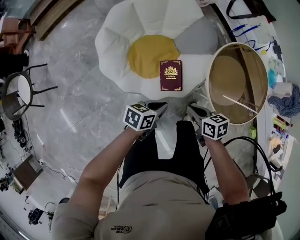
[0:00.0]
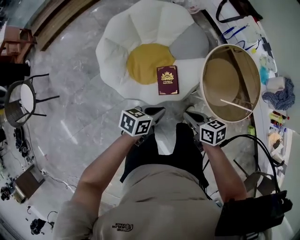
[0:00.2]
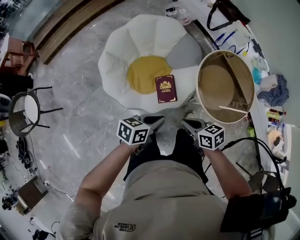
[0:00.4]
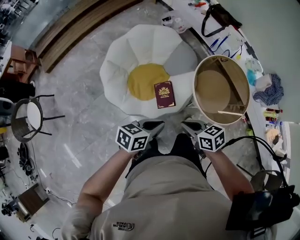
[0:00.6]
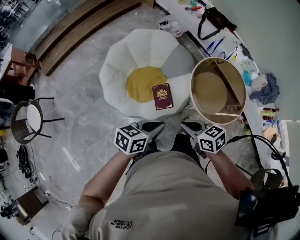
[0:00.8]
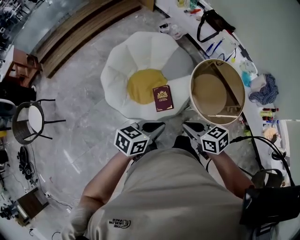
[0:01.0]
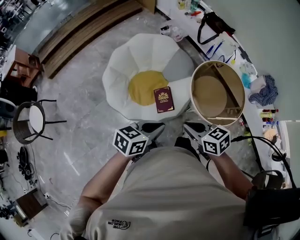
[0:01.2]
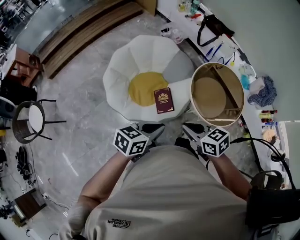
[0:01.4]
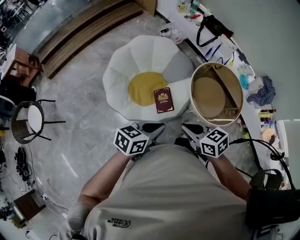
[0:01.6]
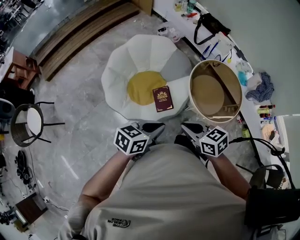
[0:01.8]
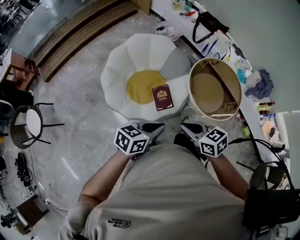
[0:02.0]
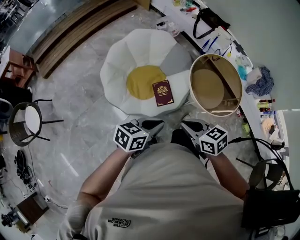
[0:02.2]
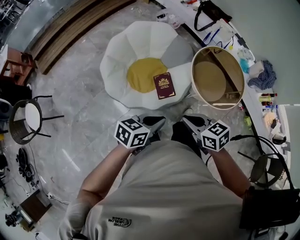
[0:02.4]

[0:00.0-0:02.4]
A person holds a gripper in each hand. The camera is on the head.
0.0 to 1.2 s: The two grippers go about 25 cm upward. The left gripper rotates about 20 degrees.
1.2 to 2.4 s: The right gripper moves roughly 5 cm, while the left gripper shifts by approximately 5 cm.

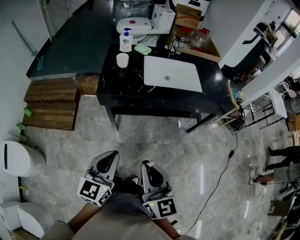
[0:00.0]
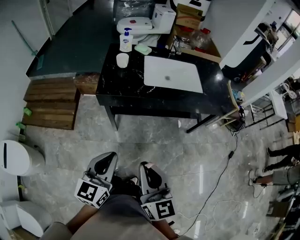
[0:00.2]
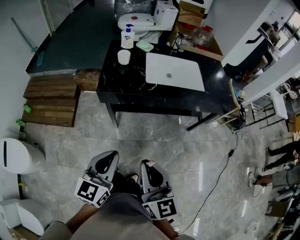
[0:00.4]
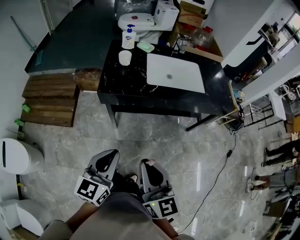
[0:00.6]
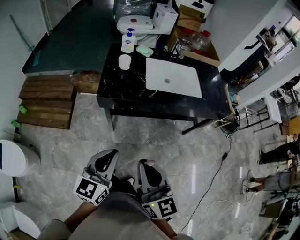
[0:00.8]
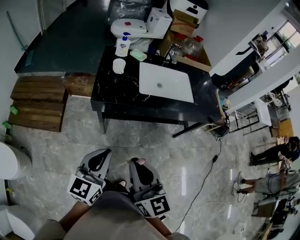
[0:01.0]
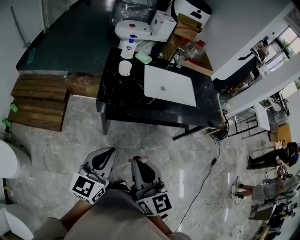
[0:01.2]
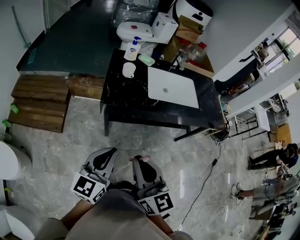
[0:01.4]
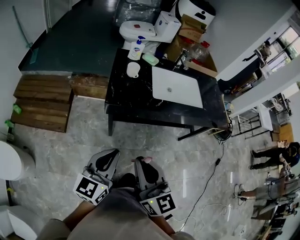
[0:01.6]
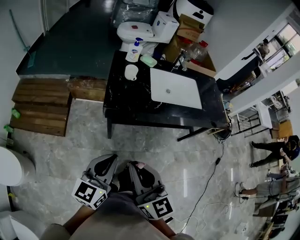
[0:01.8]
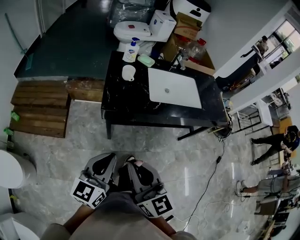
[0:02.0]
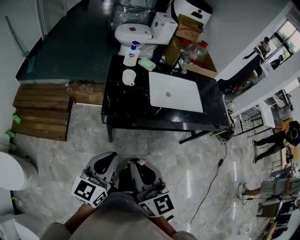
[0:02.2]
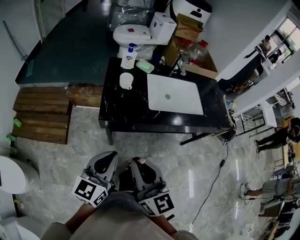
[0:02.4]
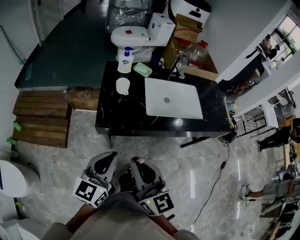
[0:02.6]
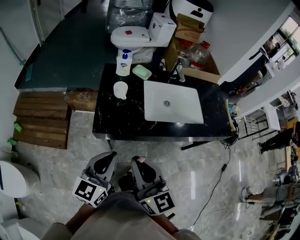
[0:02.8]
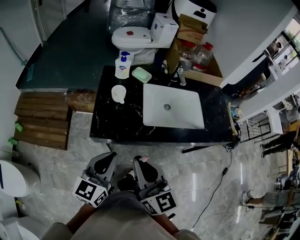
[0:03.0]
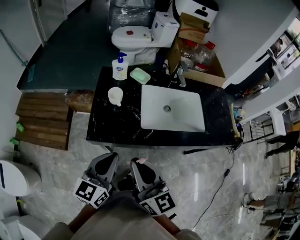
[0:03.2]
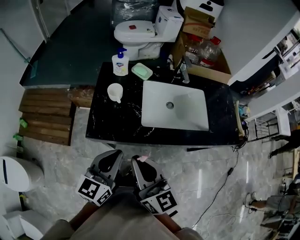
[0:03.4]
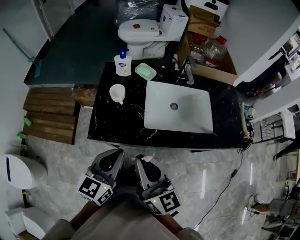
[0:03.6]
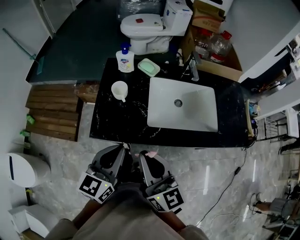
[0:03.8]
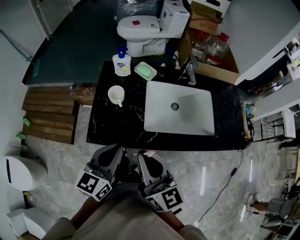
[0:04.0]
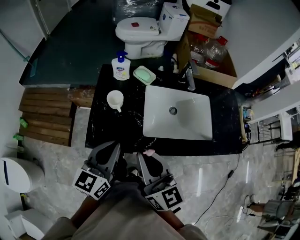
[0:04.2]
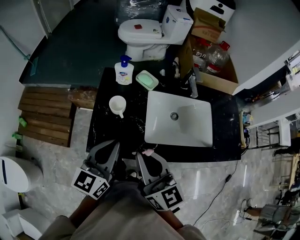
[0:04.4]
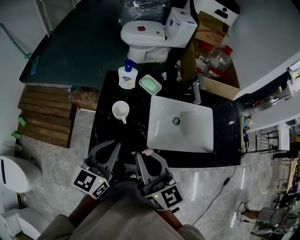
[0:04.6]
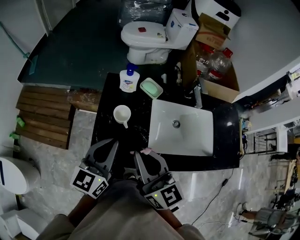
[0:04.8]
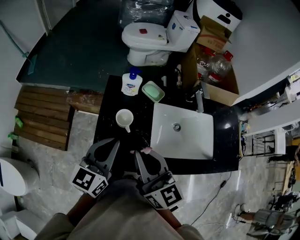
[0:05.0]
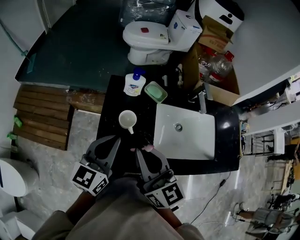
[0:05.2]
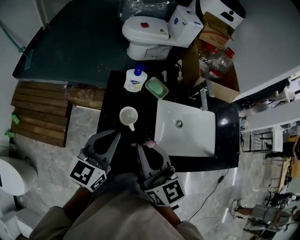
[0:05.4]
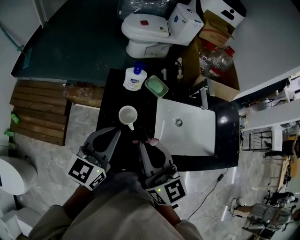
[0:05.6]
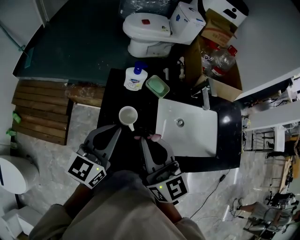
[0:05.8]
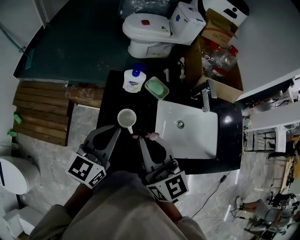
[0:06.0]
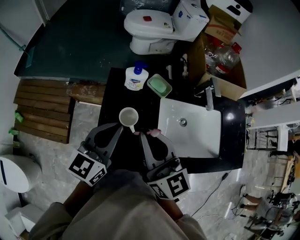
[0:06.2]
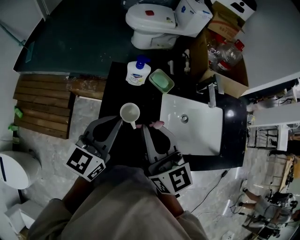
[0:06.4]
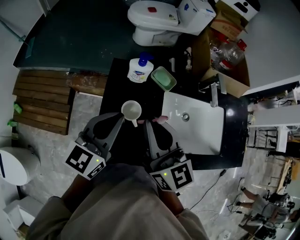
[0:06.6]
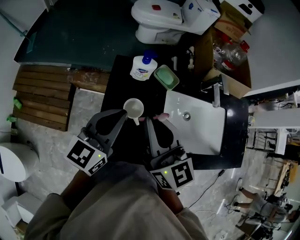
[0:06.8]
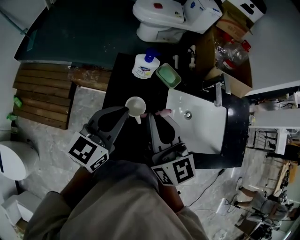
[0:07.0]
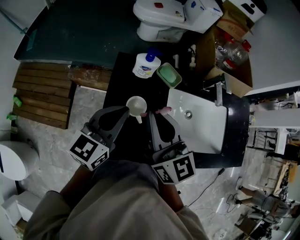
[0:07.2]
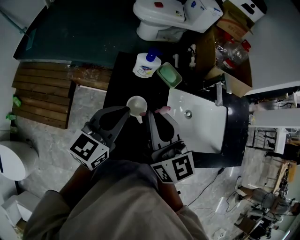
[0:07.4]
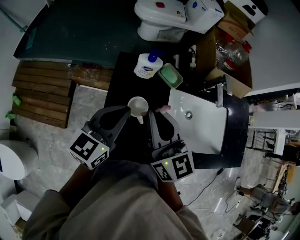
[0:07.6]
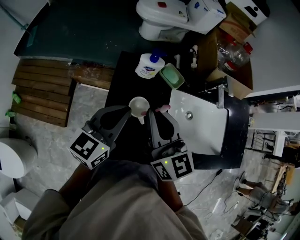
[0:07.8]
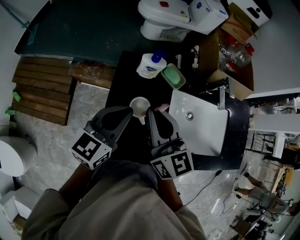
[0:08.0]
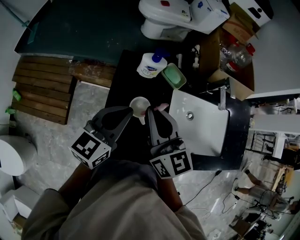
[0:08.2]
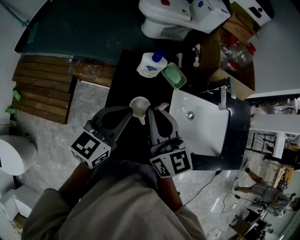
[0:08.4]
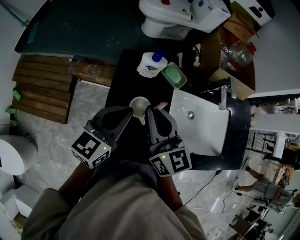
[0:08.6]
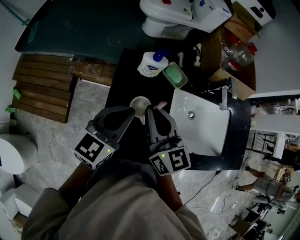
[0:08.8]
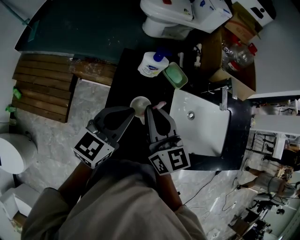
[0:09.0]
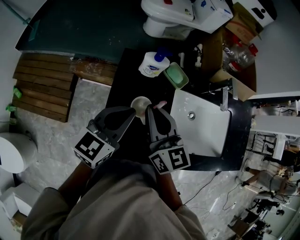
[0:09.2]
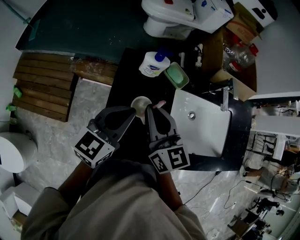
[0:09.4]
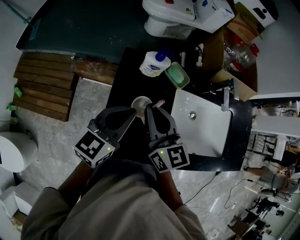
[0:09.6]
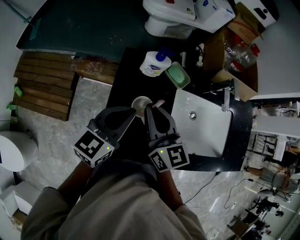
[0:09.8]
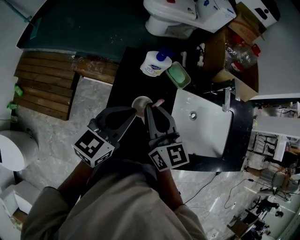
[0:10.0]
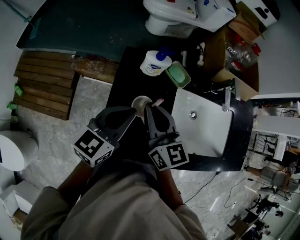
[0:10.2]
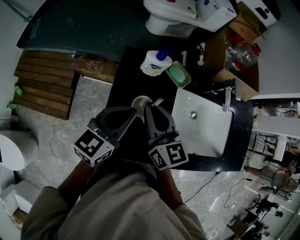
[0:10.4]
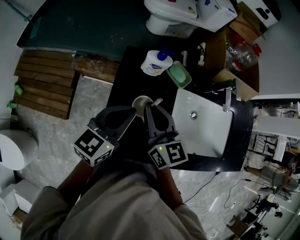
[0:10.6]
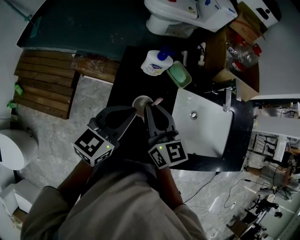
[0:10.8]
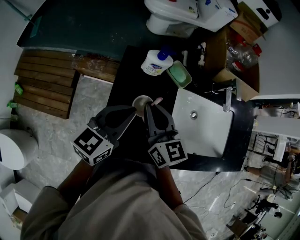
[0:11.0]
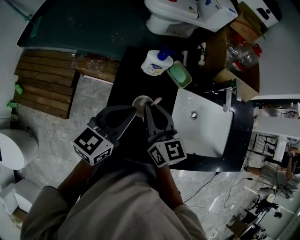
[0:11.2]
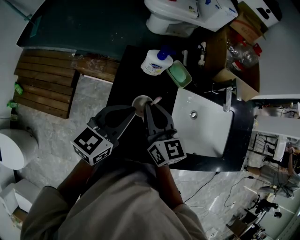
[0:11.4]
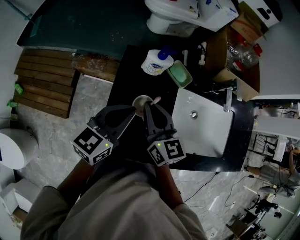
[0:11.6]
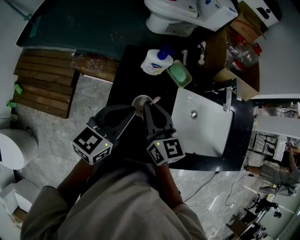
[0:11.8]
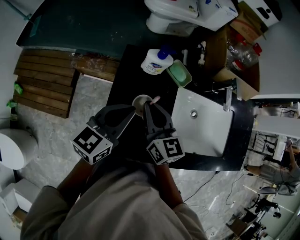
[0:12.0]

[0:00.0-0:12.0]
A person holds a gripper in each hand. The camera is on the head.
0.0 to 1.6 s: The two grippers go some 15 cm to the left and forward.
1.6 to 3.0 s: Both grippers travel together forward, approximately 20 cm.
3.0 to 4.4 s: The grippers both shift forward by some 15 cm.
4.4 to 6.0 s: Both grippers travel together forward and to the left, approximately 15 cm.
6.0 to 7.6 s: The right gripper heads forward, covering some 5 cm.
7.6 to 9.0 s: The right gripper moves roughly 5 cm.
9.0 to 10.4 s: The grippers make only small movements.
10.4 to 12.0 s: There are only small adjustments of the grippers.

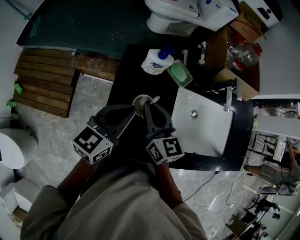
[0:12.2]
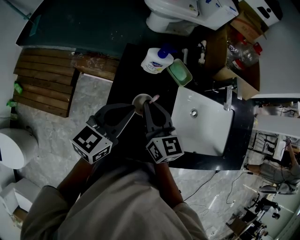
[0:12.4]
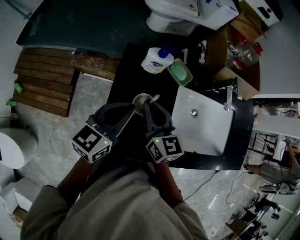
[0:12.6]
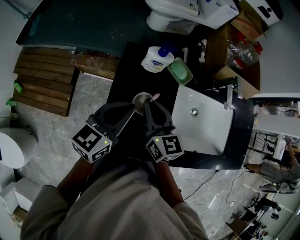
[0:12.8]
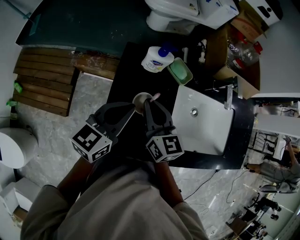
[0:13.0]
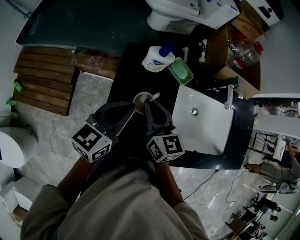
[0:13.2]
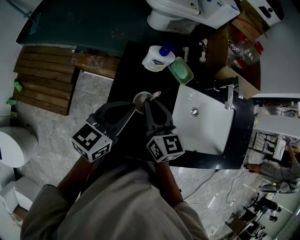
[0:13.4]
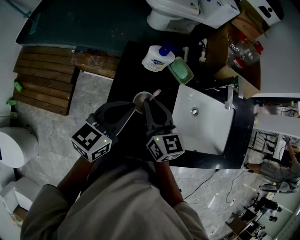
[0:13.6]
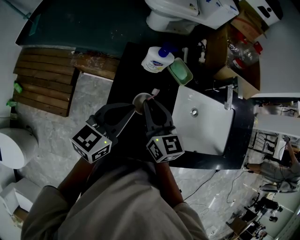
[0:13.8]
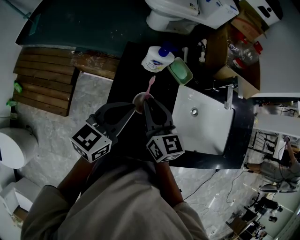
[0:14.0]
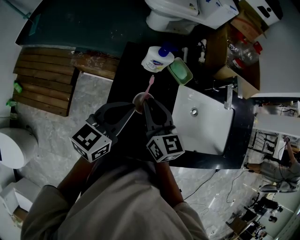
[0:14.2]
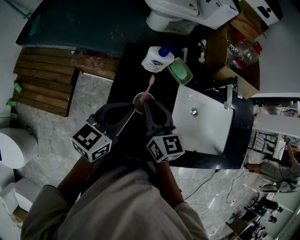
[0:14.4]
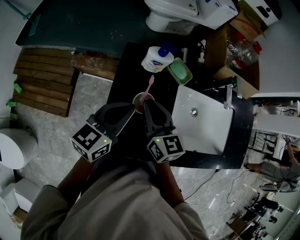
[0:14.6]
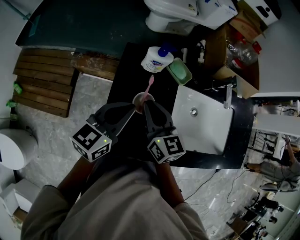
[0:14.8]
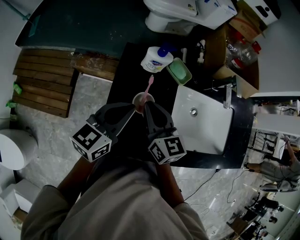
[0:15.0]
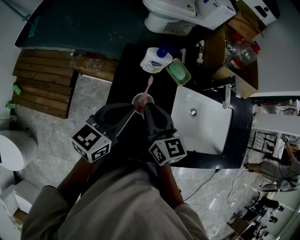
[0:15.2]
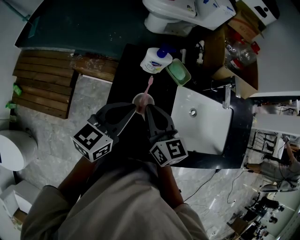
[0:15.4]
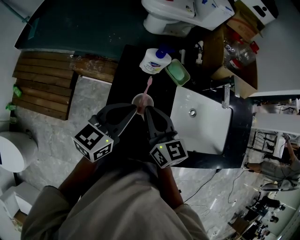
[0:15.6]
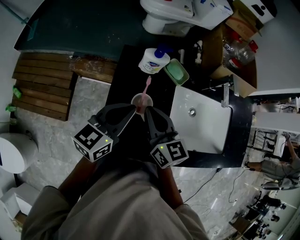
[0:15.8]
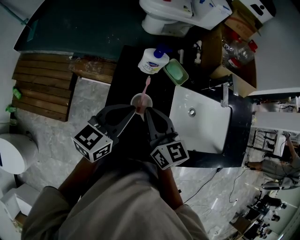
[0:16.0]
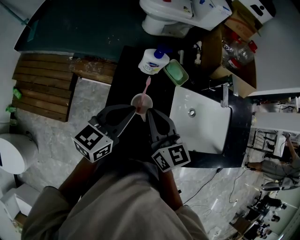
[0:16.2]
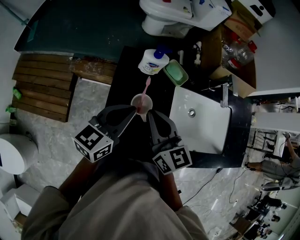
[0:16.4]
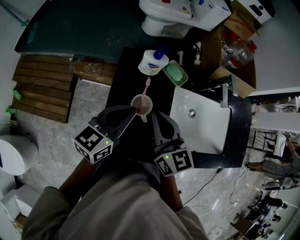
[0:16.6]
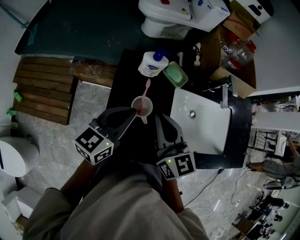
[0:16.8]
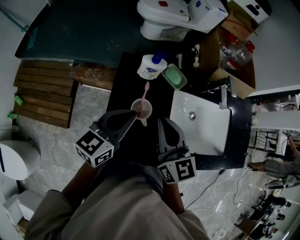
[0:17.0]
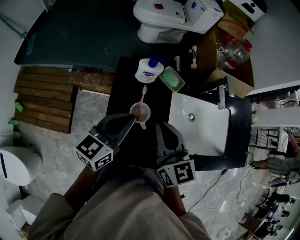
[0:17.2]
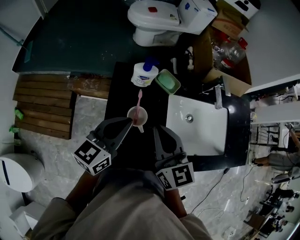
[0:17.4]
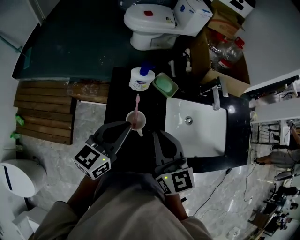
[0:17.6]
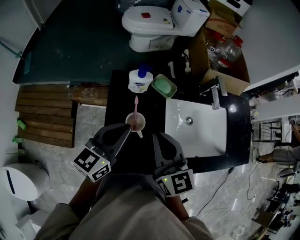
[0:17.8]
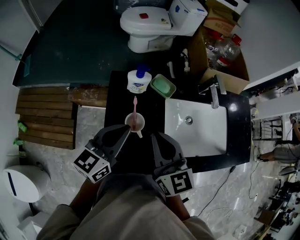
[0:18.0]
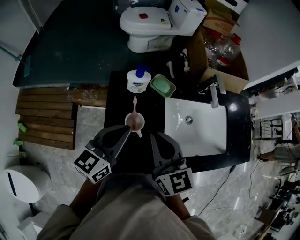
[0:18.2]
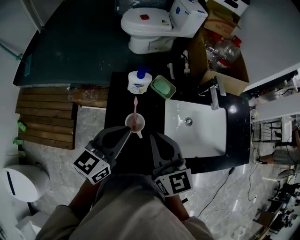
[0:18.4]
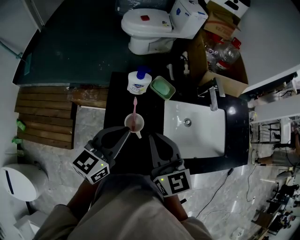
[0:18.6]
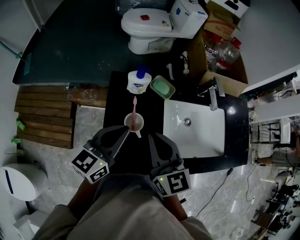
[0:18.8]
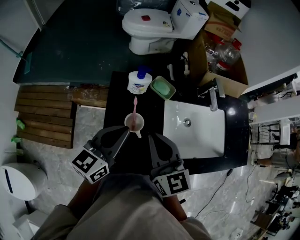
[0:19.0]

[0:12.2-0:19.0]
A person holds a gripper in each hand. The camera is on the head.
12.2 to 15.0 s: Both grippers stay about where they are.
15.0 to 16.2 s: The grippers stay close to where they were, moving slightly.
16.2 to 17.6 s: The right gripper moves upward, roughly 5 cm.
17.6 to 19.0 s: There are only small adjustments of the grippers.

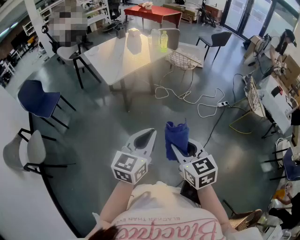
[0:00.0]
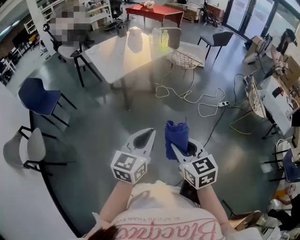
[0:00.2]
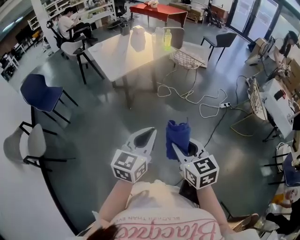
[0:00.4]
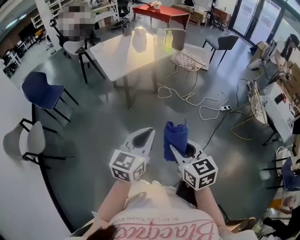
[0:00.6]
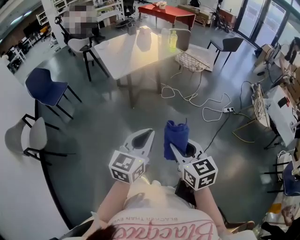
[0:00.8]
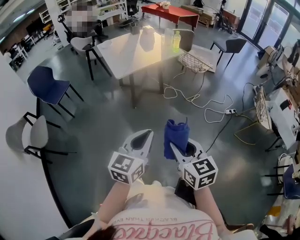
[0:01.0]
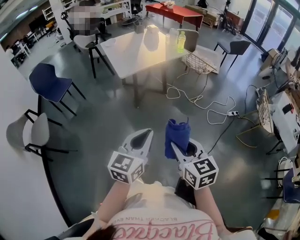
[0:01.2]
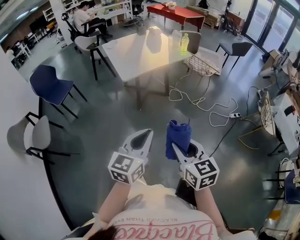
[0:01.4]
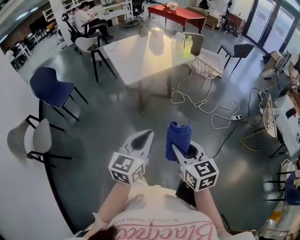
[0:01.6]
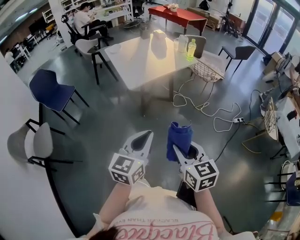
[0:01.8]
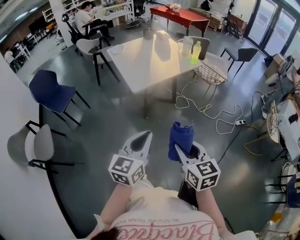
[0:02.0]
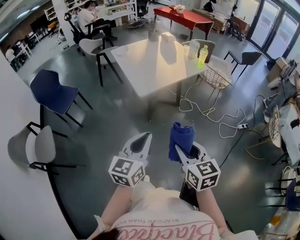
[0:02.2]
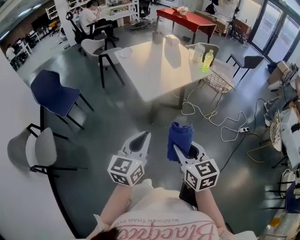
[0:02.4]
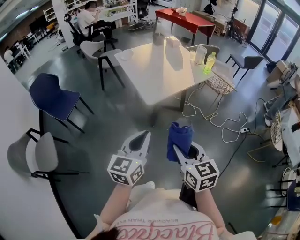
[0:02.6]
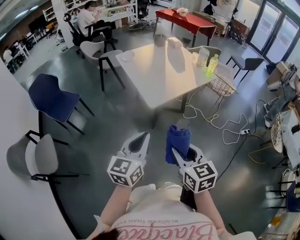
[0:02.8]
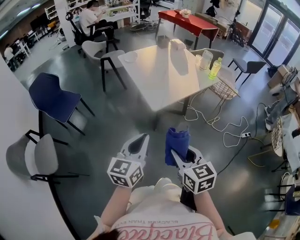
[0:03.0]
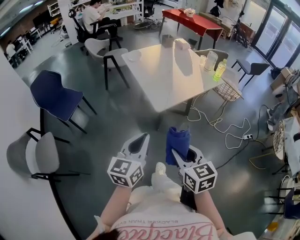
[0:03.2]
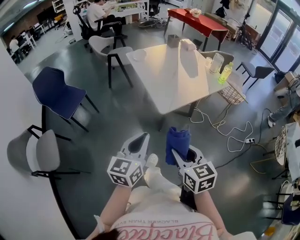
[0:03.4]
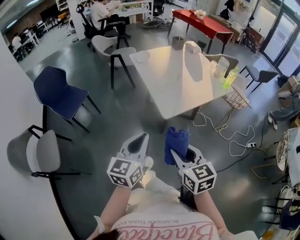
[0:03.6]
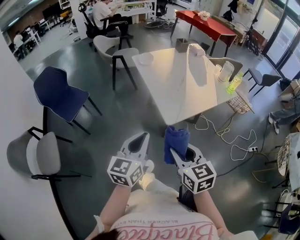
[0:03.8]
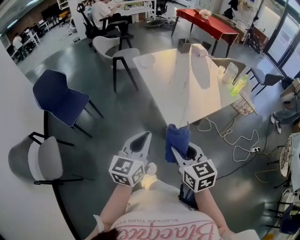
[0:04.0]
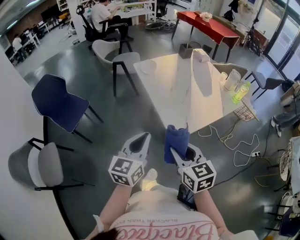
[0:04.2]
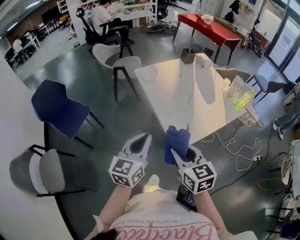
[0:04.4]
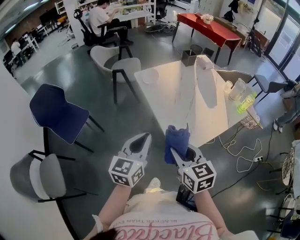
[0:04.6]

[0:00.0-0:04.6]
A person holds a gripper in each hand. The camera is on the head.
0.0 to 1.6 s: The right gripper goes roughly 10 cm forward and to the left. The left gripper travels to the left and forward by some 10 cm.
1.6 to 3.0 s: Both grippers move to the left and forward, approximately 35 cm.
3.0 to 4.6 s: The two grippers go roughly 35 cm forward.
